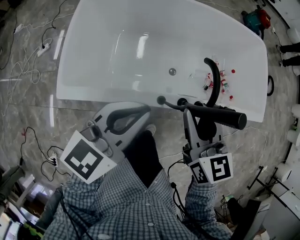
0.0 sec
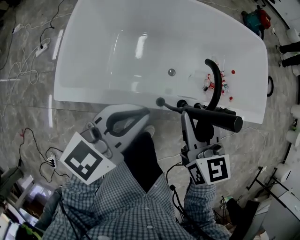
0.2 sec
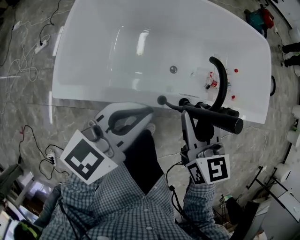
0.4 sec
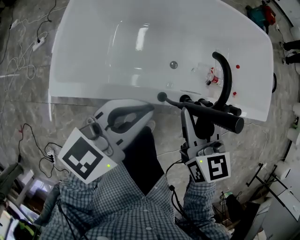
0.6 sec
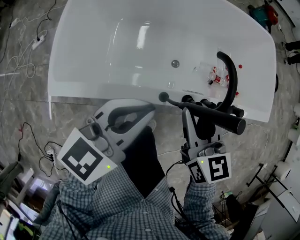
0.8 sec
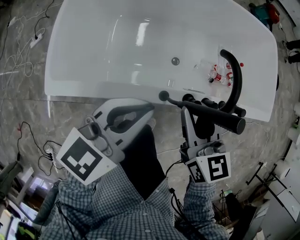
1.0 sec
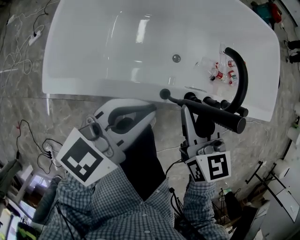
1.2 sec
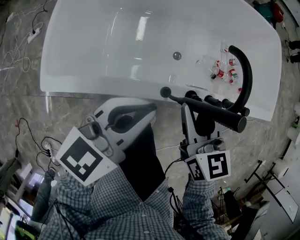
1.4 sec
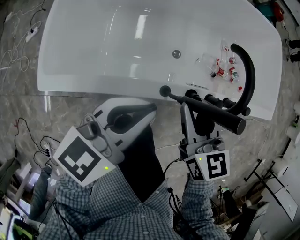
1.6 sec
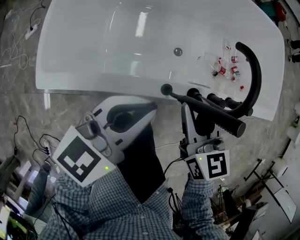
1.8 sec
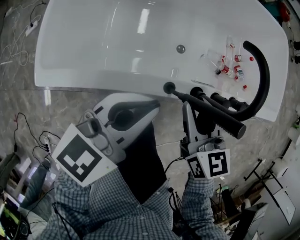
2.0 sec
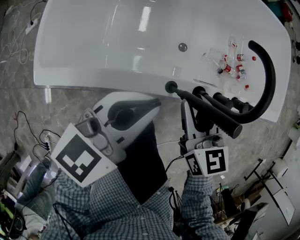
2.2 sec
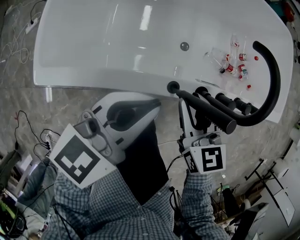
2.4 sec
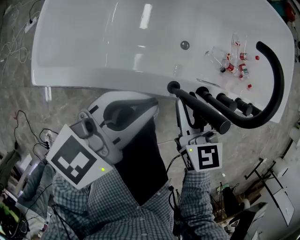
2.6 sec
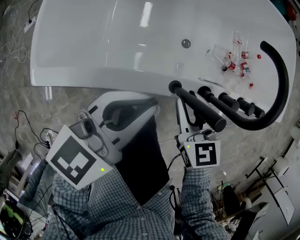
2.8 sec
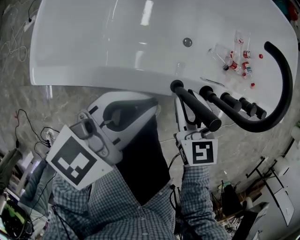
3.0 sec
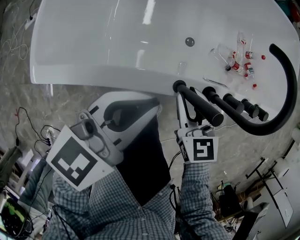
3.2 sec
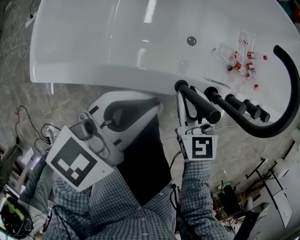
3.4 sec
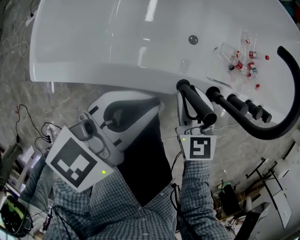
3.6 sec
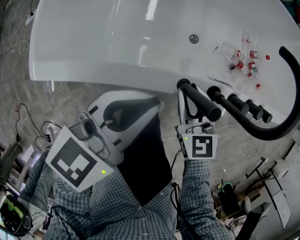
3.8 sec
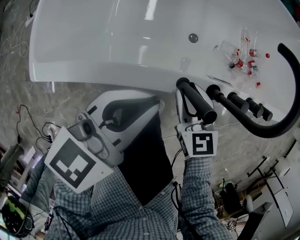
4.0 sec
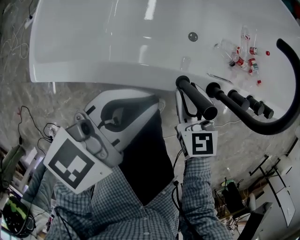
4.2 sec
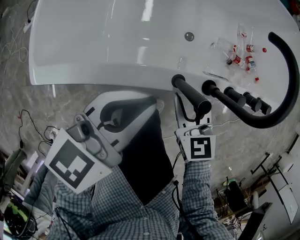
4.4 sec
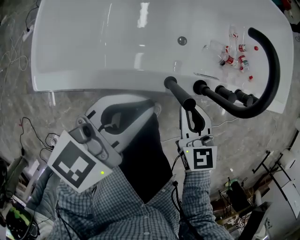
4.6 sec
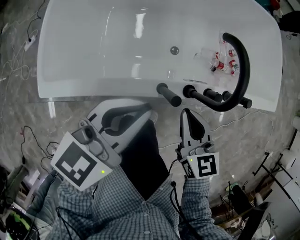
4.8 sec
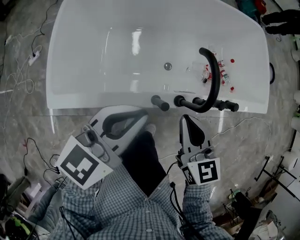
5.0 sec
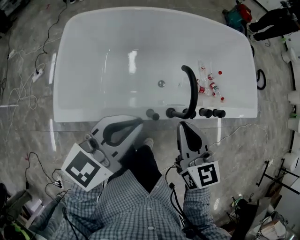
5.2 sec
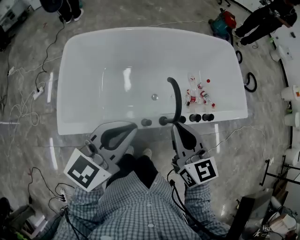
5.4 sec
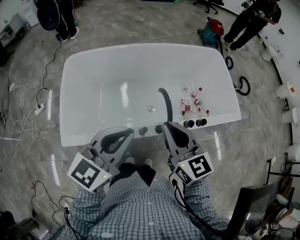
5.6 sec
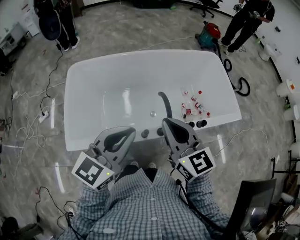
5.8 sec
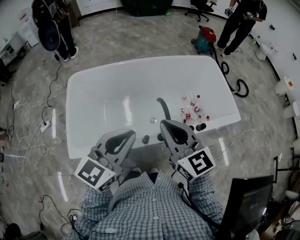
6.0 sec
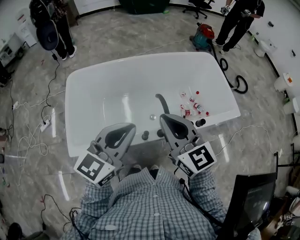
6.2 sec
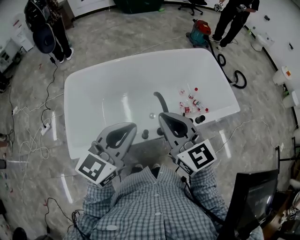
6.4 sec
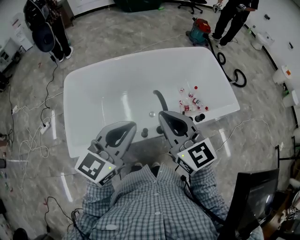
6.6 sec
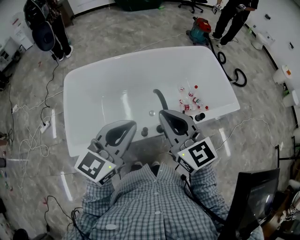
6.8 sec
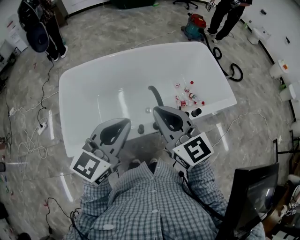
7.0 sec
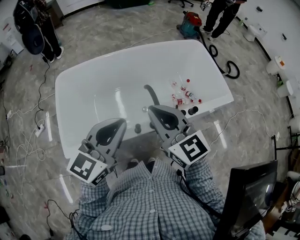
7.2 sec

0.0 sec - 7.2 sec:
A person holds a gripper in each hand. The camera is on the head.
0.0 sec - 1.4 sec: The two grippers go roughly 15 cm downward.
1.4 sec - 2.8 sec: The left gripper shifts approximately 5 cm downward. The right gripper goes approximately 15 cm downward.
2.8 sec - 4.4 sec: There are only small adjustments of the grippers.
4.4 sec - 5.8 sec: The grippers both shift upward by approximately 40 cm. The right gripper rotates approximately 30 degrees, and closes up. Meanwhile the left gripper turns by some 20 degrees.
5.8 sec - 7.2 sec: There are only small adjustments of the grippers.

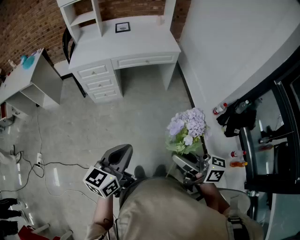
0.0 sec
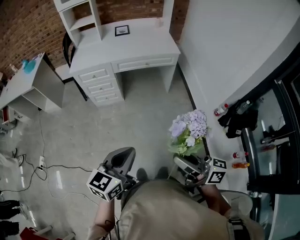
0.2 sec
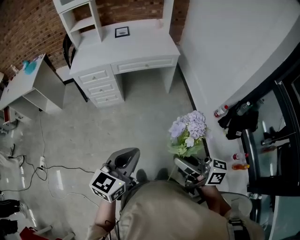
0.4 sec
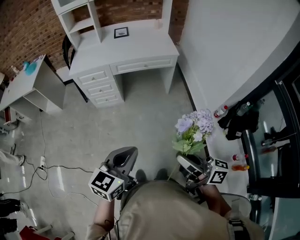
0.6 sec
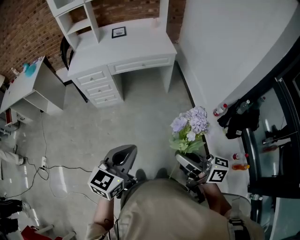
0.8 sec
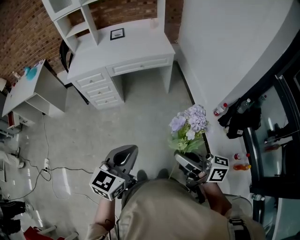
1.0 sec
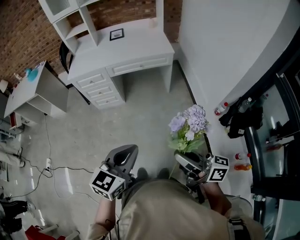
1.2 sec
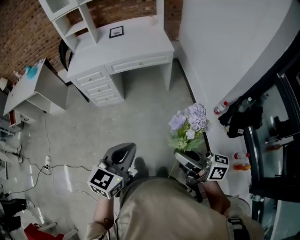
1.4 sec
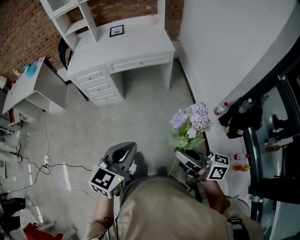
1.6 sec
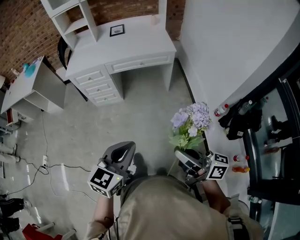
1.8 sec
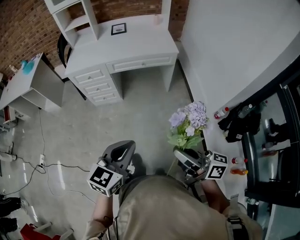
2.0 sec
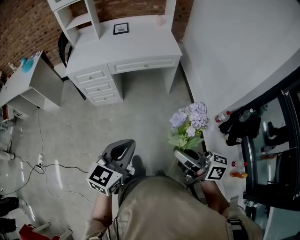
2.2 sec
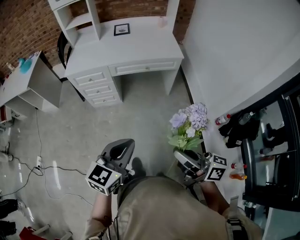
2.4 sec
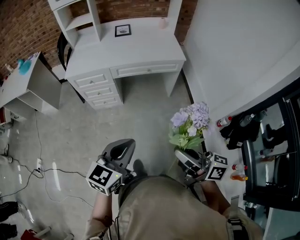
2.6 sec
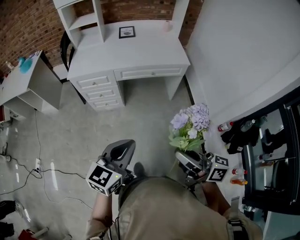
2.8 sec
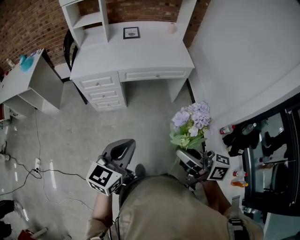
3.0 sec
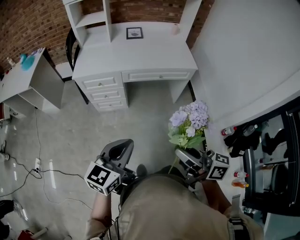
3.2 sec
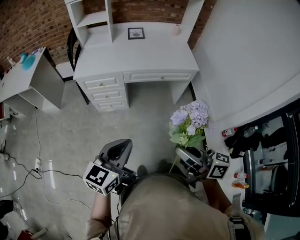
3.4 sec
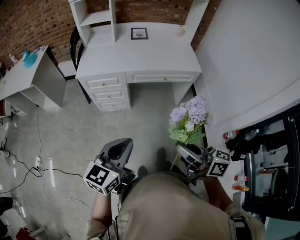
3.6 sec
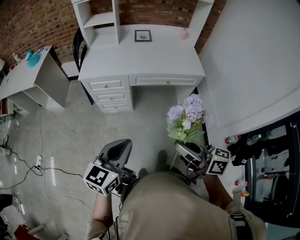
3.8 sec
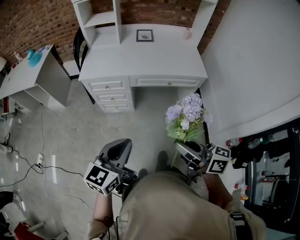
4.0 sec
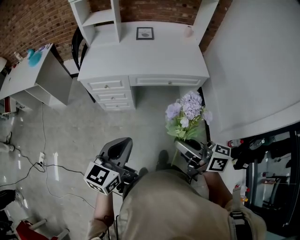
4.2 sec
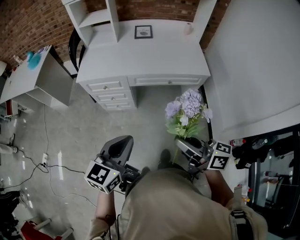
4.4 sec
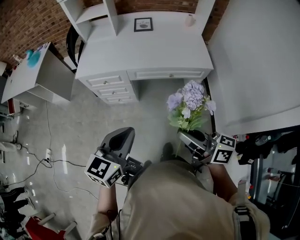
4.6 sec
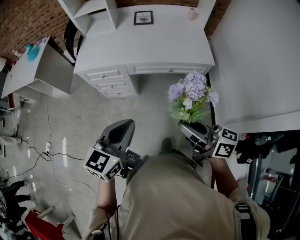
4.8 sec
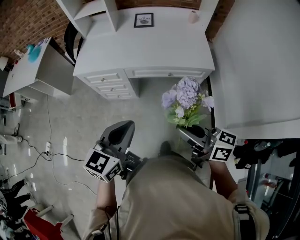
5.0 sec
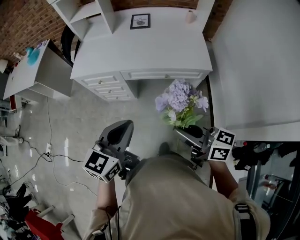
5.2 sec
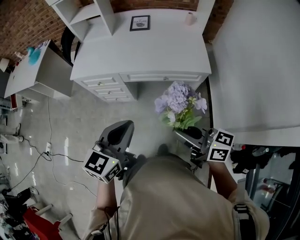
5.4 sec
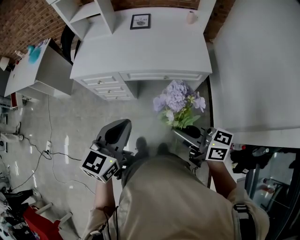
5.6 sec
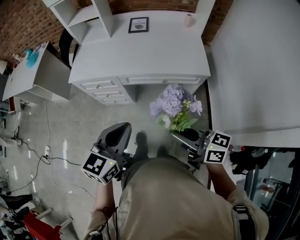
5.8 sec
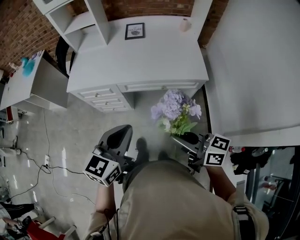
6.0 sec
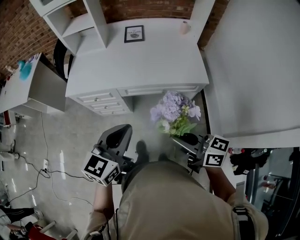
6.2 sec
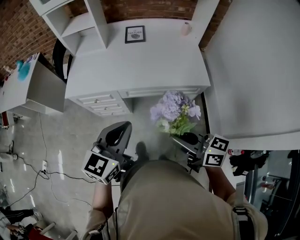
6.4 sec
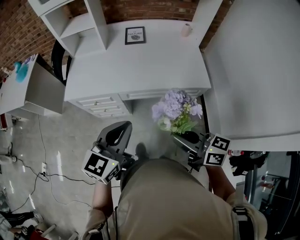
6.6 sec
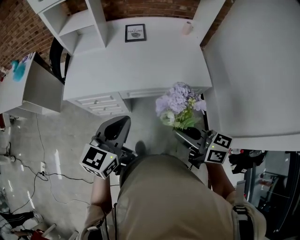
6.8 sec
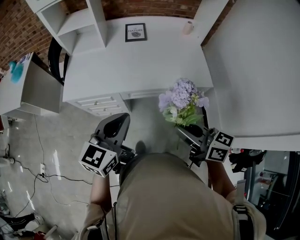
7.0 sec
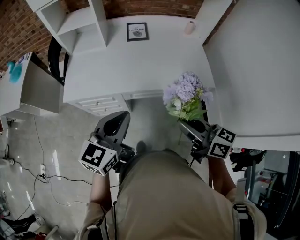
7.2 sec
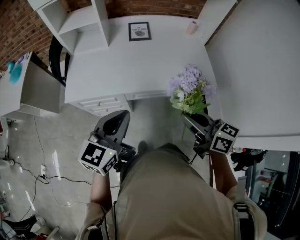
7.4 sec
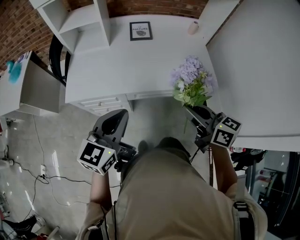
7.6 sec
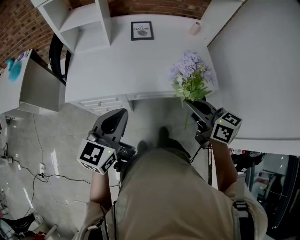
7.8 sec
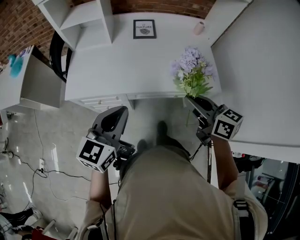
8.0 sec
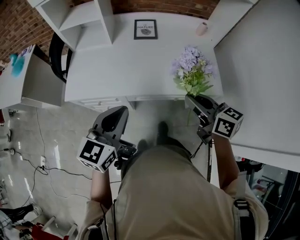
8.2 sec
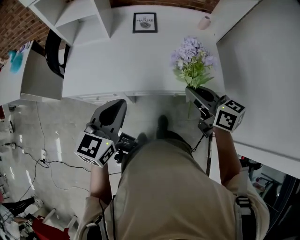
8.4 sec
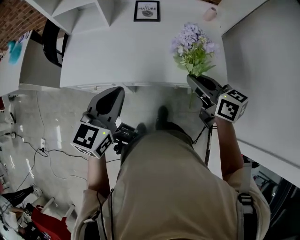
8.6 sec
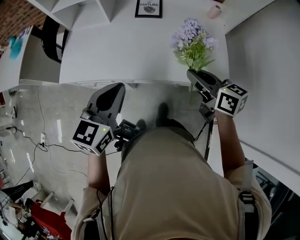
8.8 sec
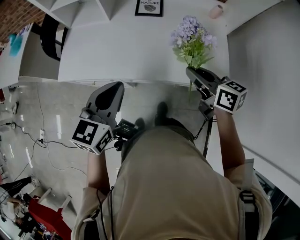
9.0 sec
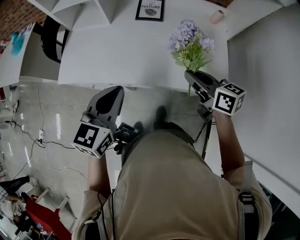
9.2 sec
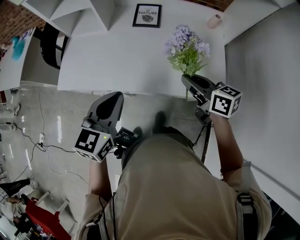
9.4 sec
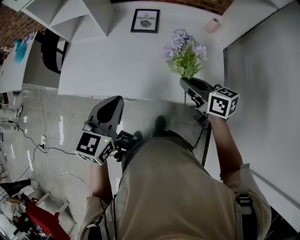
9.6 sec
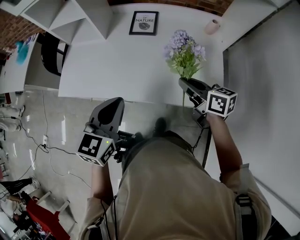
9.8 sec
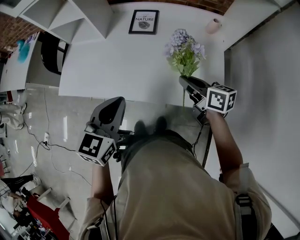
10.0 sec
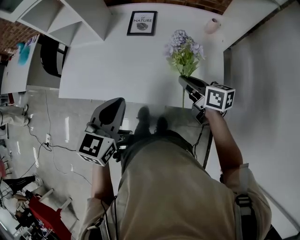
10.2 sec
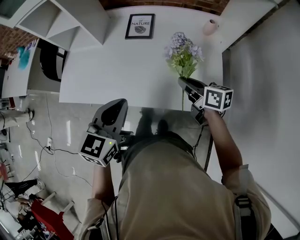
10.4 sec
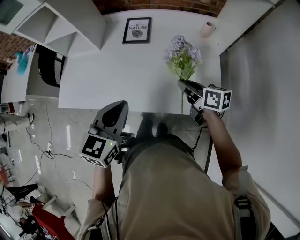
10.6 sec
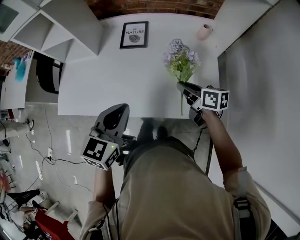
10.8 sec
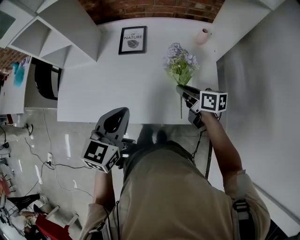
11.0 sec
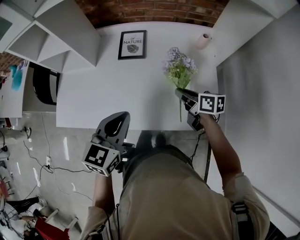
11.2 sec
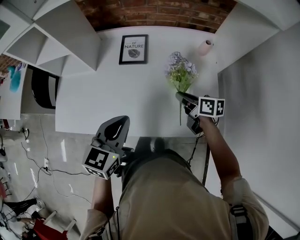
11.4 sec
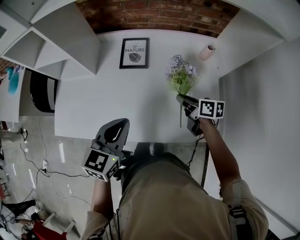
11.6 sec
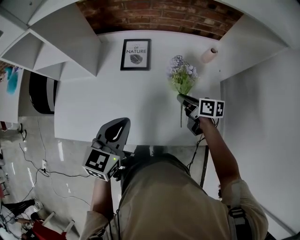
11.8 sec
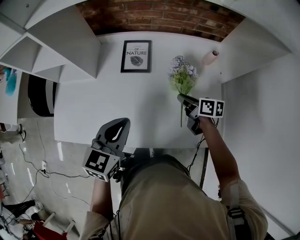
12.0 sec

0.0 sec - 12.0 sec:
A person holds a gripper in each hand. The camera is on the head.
0.0 sec - 1.6 sec: Both grippers travel together to the right, about 10 cm.
1.6 sec - 3.0 sec: Both grippers travel together forward and to the left, some 15 cm.
3.0 sec - 4.4 sec: The grippers both shift forward by roughly 10 cm.
4.4 sec - 6.0 sec: The grippers both shift forward and to the right by about 10 cm.
6.0 sec - 7.6 sec: The right gripper goes approximately 20 cm forward, and rotates roughly 20 degrees. The left gripper heads forward and to the left, covering about 20 cm.
7.6 sec - 9.0 sec: The right gripper moves forward, to the right and downward, approximately 20 cm. Meanwhile the left gripper shifts about 10 cm forward and to the right.
9.0 sec - 10.4 sec: The right gripper moves to the right, forward and downward, roughly 10 cm. Meanwhile the left gripper travels to the right by some 10 cm.
10.4 sec - 12.0 sec: The right gripper moves forward and downward, about 15 cm; the left gripper goes some 15 cm forward.

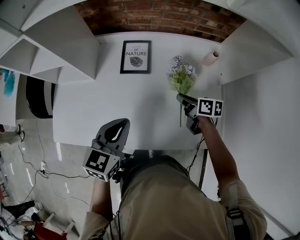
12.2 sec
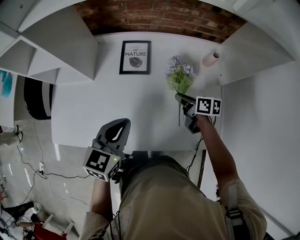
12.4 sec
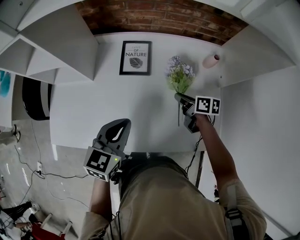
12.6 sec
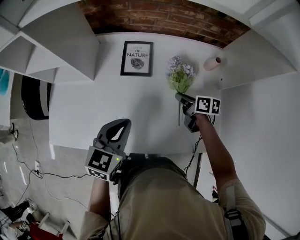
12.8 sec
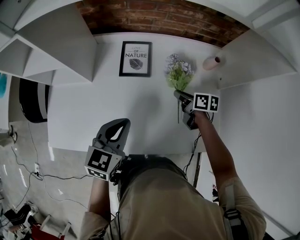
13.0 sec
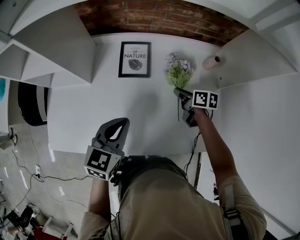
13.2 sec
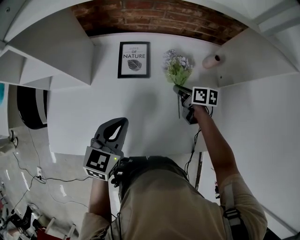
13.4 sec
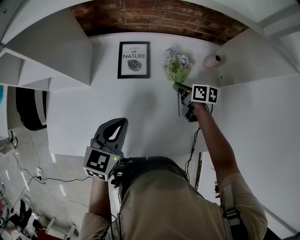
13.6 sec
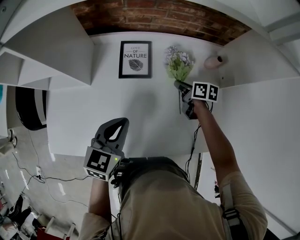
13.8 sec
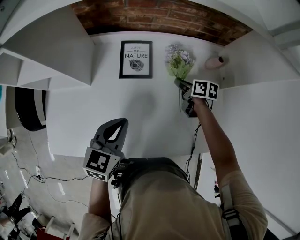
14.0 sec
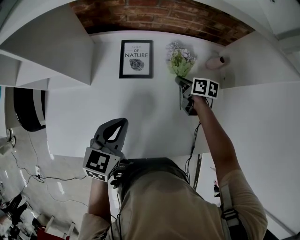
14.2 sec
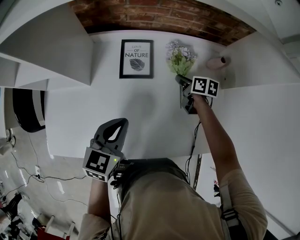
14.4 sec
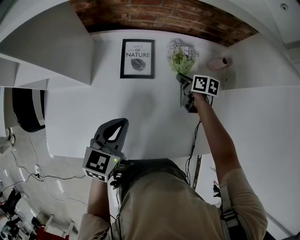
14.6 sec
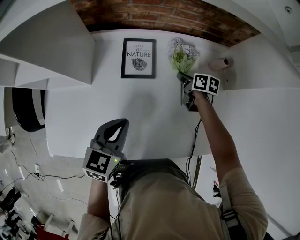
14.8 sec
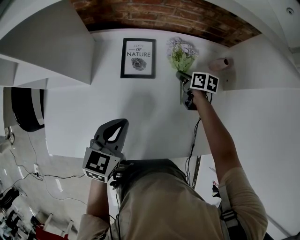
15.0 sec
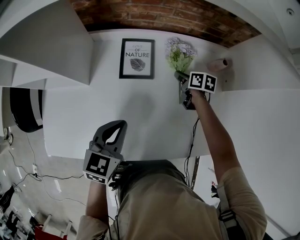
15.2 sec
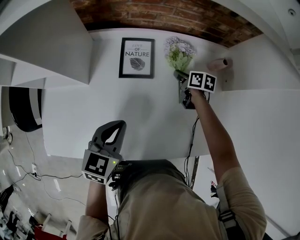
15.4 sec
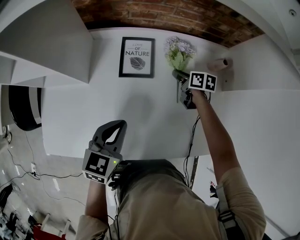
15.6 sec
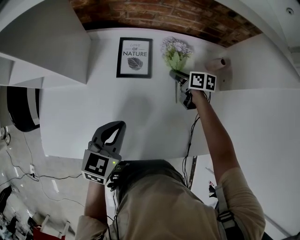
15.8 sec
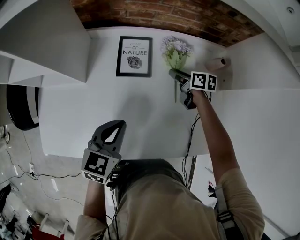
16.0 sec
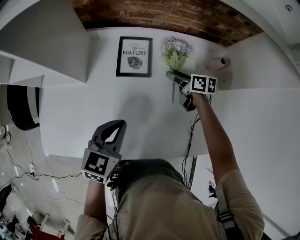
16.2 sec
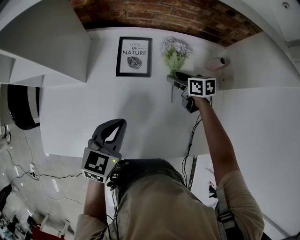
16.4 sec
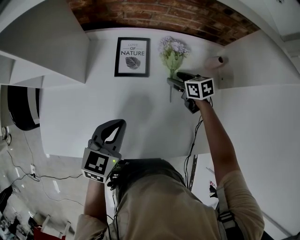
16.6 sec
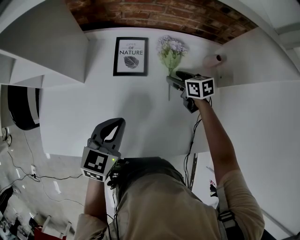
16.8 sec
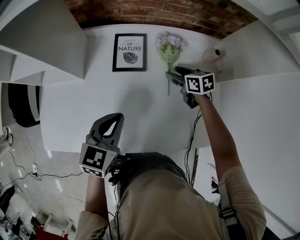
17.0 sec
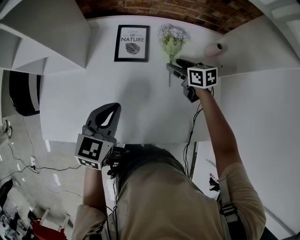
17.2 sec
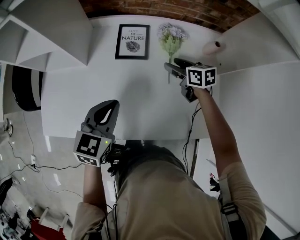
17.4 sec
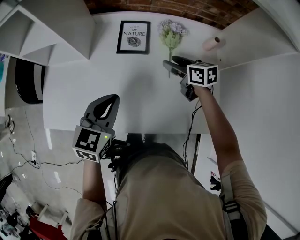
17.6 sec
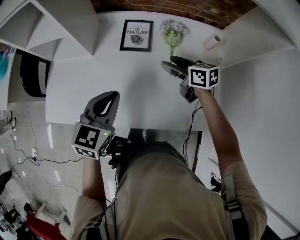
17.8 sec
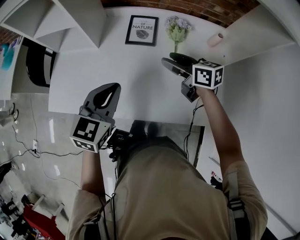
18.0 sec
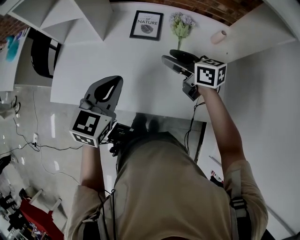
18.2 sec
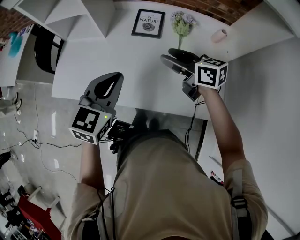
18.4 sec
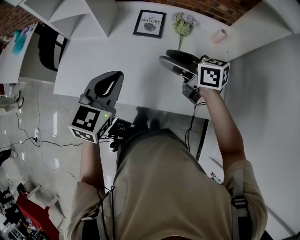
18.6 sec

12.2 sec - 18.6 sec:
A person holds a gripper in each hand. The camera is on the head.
12.2 sec - 13.8 sec: The right gripper goes some 10 cm forward; the left gripper changes place by some 5 cm.
13.8 sec - 15.4 sec: The right gripper goes roughly 5 cm forward.
15.4 sec - 17.0 sec: The right gripper moves approximately 5 cm, swivels approximately 30 degrees, and opens.
17.0 sec - 18.6 sec: The right gripper goes about 30 cm upward, backward and to the left, and changes its angle by roughly 30 degrees. The left gripper goes roughly 15 cm backward and upward.
